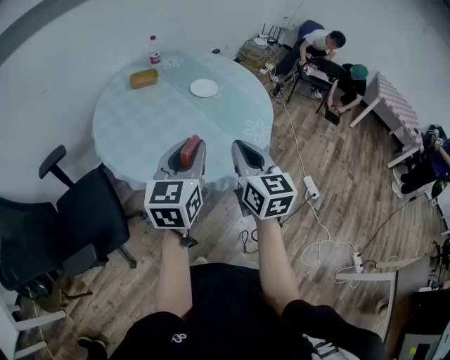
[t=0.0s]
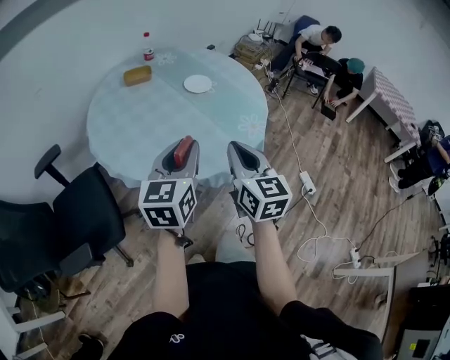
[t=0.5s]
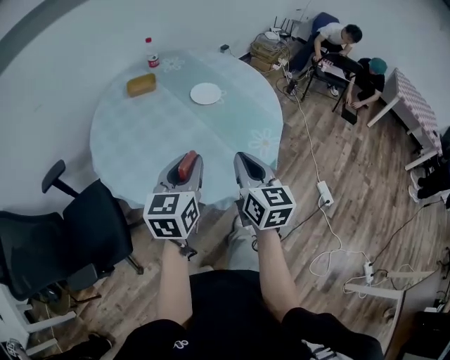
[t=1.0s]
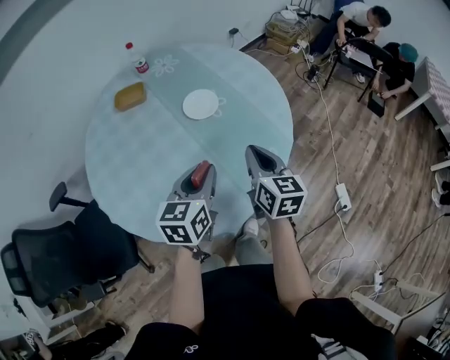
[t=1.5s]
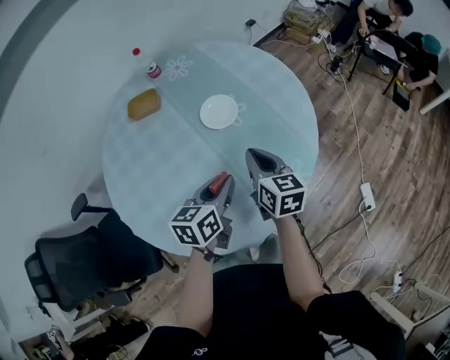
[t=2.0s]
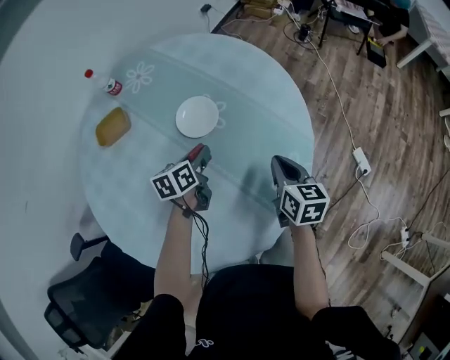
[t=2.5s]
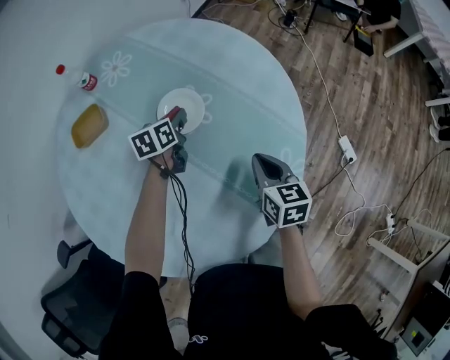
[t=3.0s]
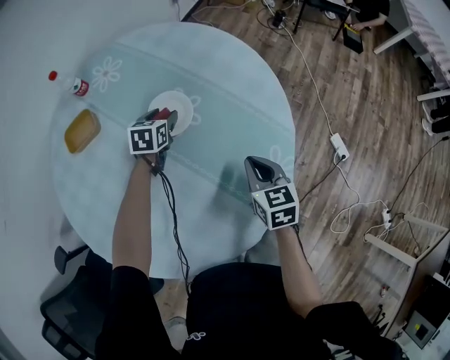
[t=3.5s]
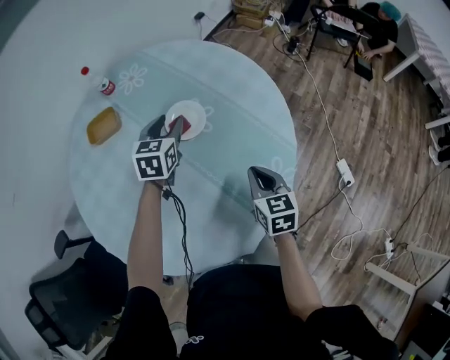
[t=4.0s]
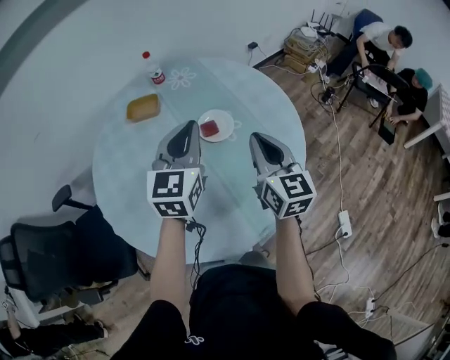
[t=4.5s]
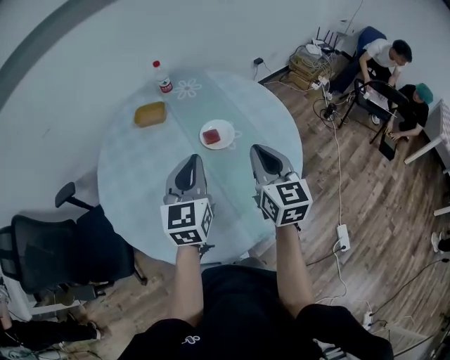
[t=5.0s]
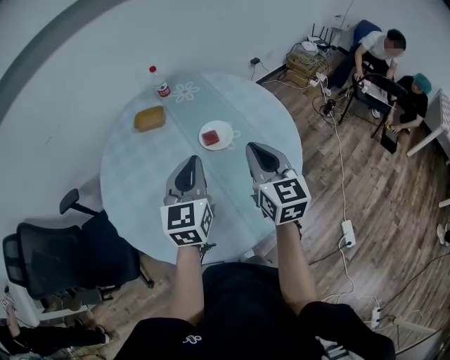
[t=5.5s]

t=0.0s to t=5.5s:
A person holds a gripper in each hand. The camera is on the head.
t=0.0s to t=2.0s: The right gripper goes about 40 cm forward and downward, and changes its angle by roughly 20 degrees; the left gripper travels forward, downward and to the right by roughly 40 cm, and rotates approximately 30 degrees.
t=2.0s to t=3.5s: The left gripper goes some 35 cm forward and downward, swivels approximately 30 degrees, and opens its fingers. Meanwhile the right gripper shifts some 10 cm downward and to the right, and changes its angle by about 30 degrees.
t=3.5s to t=5.5s: The two grippers go approximately 30 cm upward. The left gripper tips its fingers upward by roughly 40 degrees, and closes up. Meanwhile the right gripper tilts its fingers roughly 30 degrees upward.

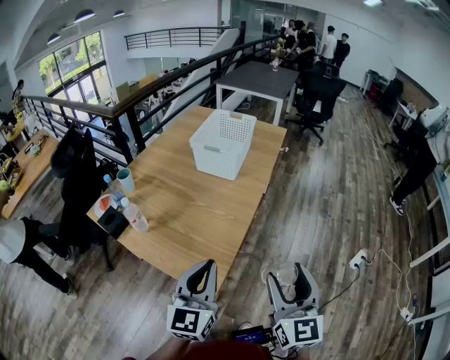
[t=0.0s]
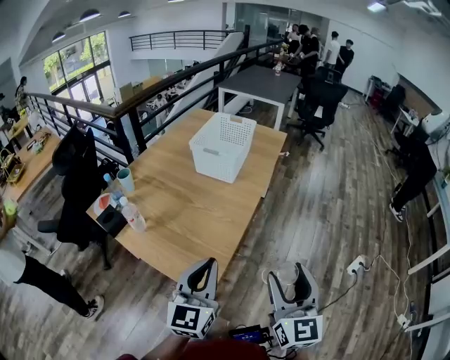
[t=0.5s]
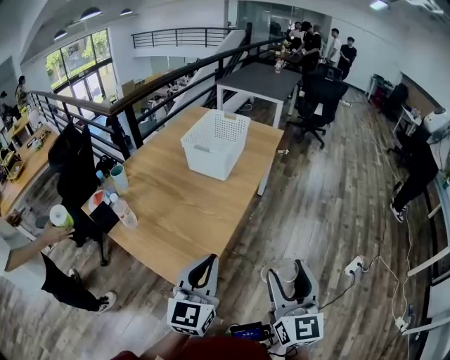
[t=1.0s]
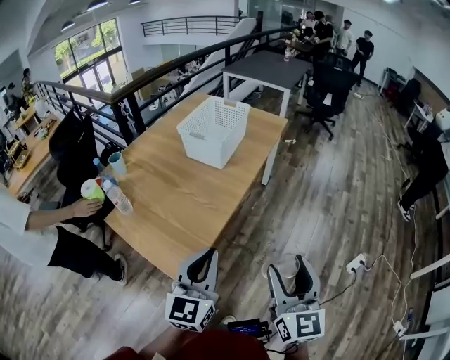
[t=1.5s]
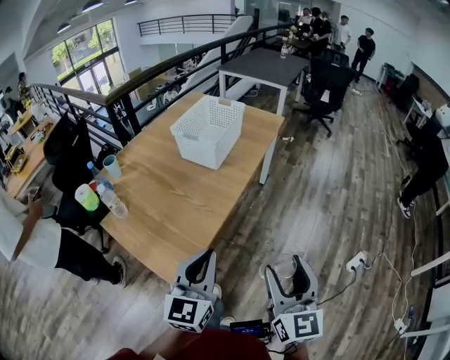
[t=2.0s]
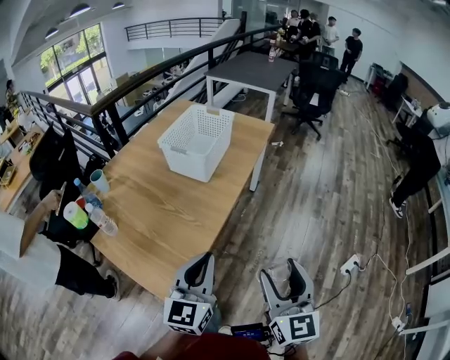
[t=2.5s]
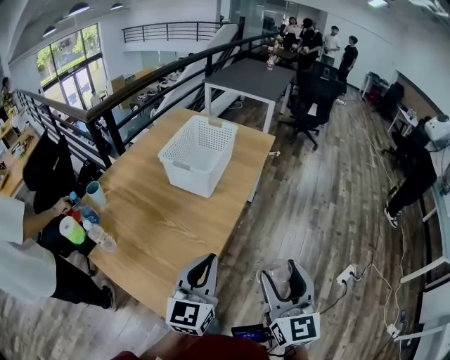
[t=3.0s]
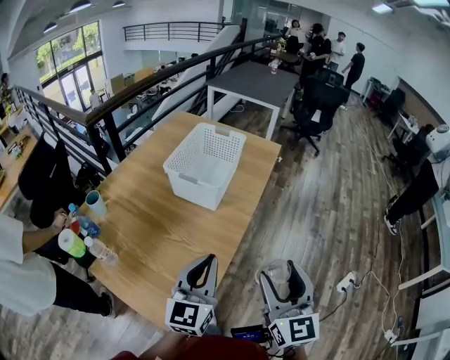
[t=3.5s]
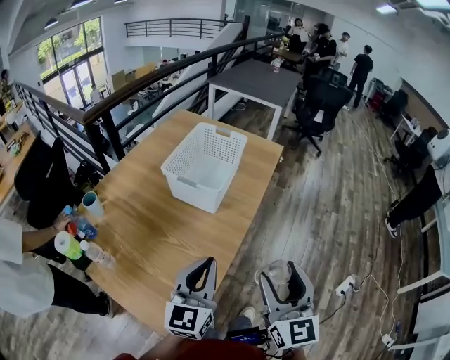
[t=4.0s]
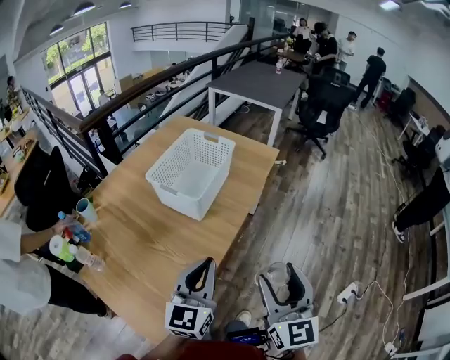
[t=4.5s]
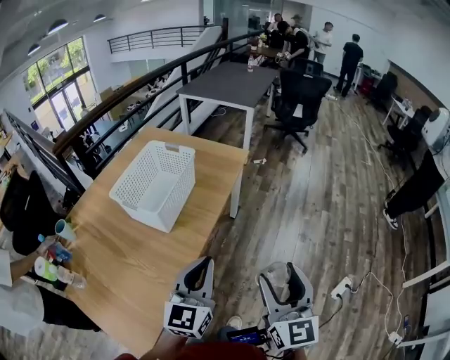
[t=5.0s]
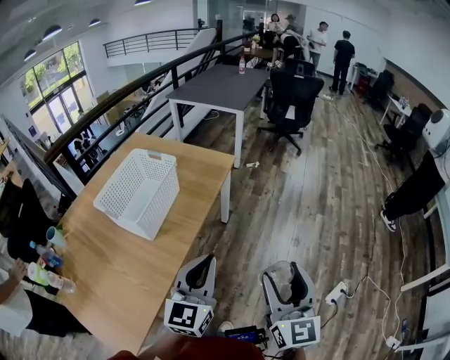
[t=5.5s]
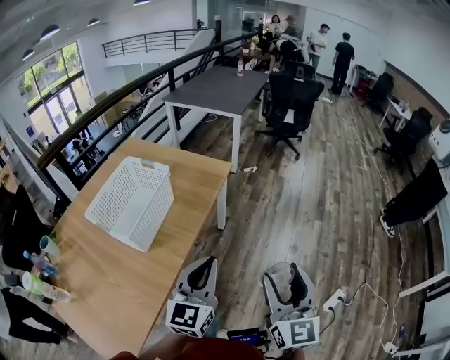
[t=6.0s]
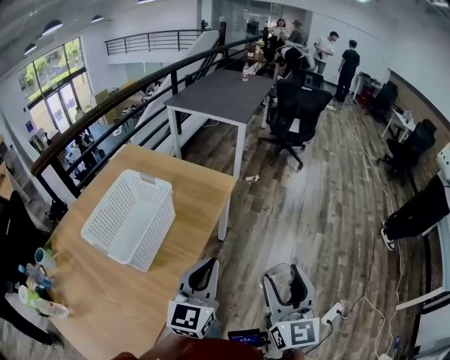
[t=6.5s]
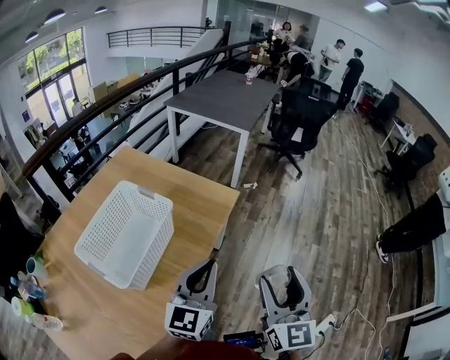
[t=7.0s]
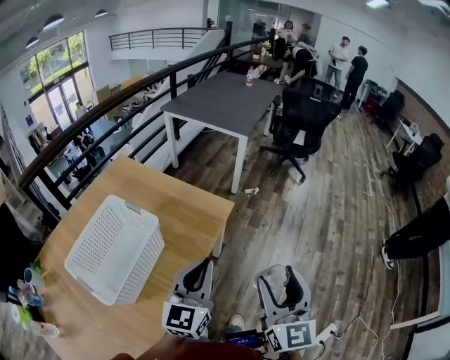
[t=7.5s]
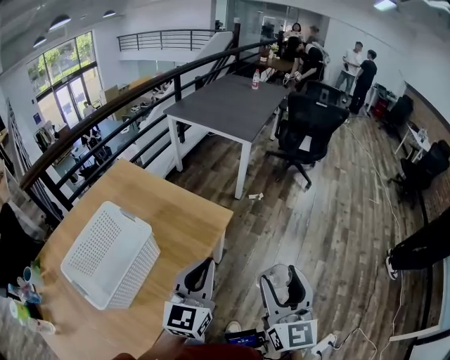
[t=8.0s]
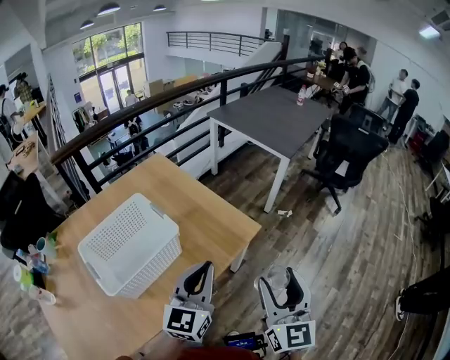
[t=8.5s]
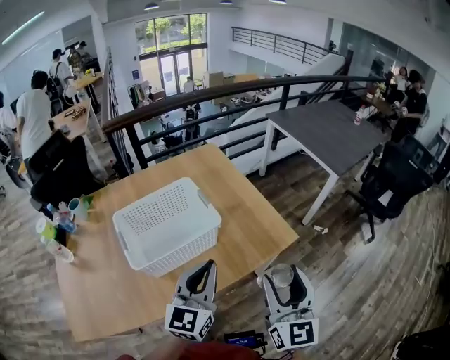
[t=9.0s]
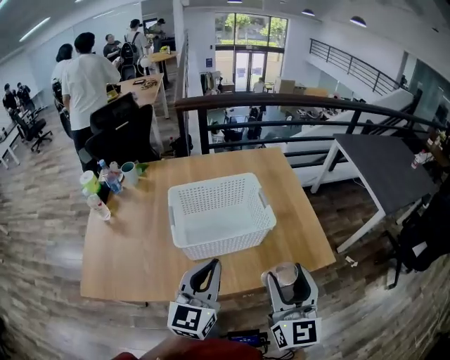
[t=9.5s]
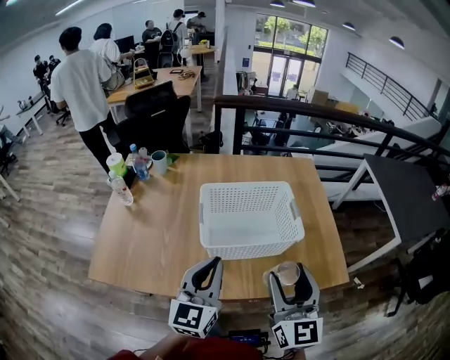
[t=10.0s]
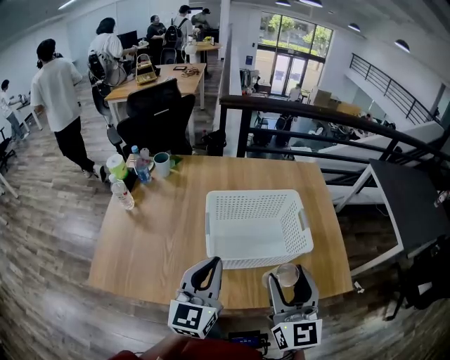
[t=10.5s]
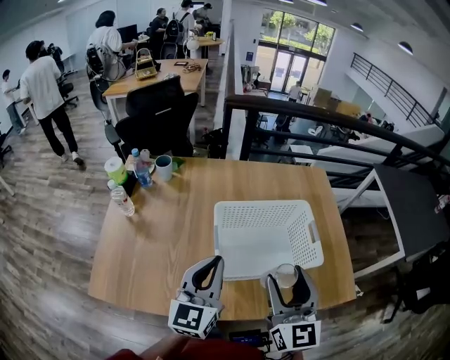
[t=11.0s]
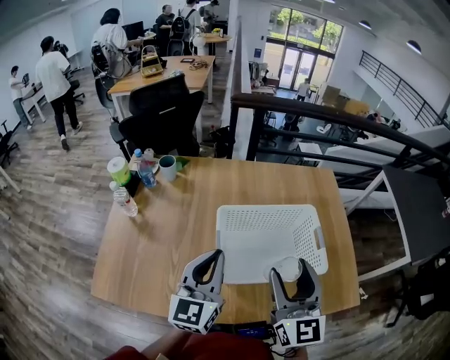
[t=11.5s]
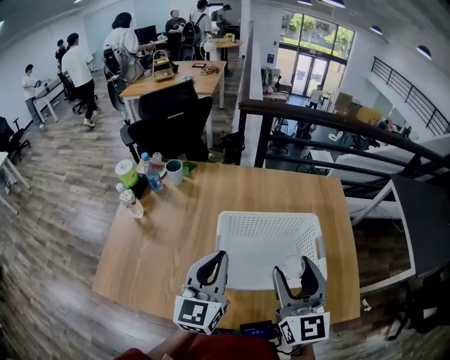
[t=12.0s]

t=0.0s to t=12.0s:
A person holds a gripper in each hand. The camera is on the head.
t=0.0s to t=2.0s: Both grippers travel together to the right, some 10 cm.
t=2.0s to t=4.0s: The left gripper is displaced forward by some 20 cm. Meanwhile the right gripper moves forward and to the left, about 20 cm.
t=4.0s to t=6.0s: Both grippers move to the right and forward, about 30 cm.
t=6.0s to t=8.0s: The grippers both shift forward by some 30 cm.
t=8.0s to t=10.0s: The right gripper changes place by roughly 30 cm, and turns by about 60 degrees; the left gripper shifts by roughly 30 cm, and changes its angle by approximately 60 degrees.
t=10.0s to t=12.0s: Both grippers move forward, about 15 cm.

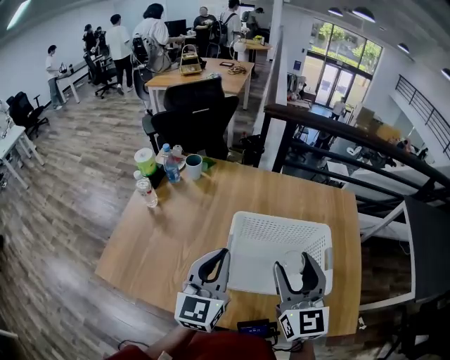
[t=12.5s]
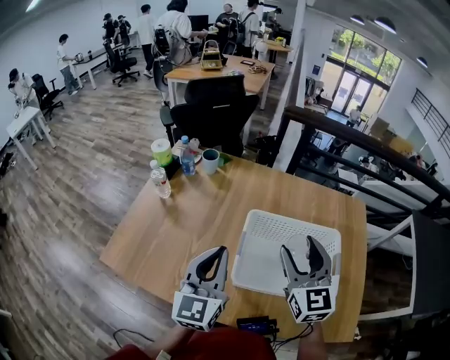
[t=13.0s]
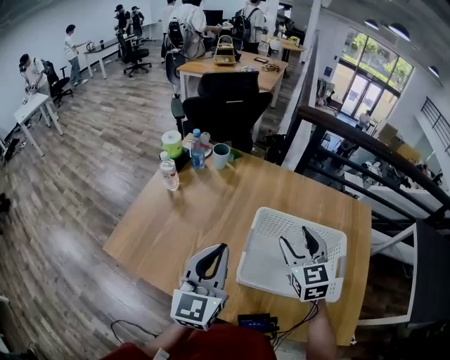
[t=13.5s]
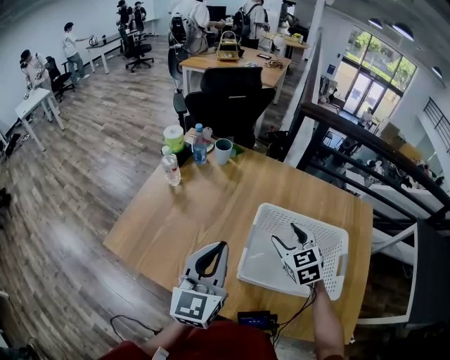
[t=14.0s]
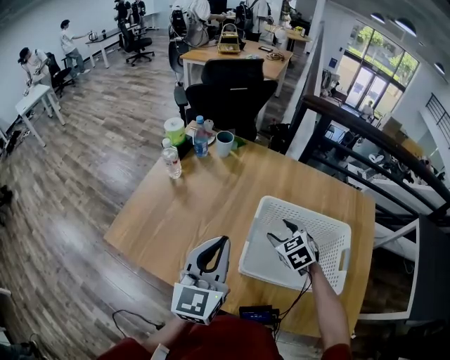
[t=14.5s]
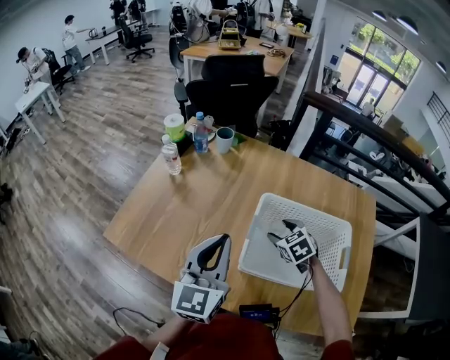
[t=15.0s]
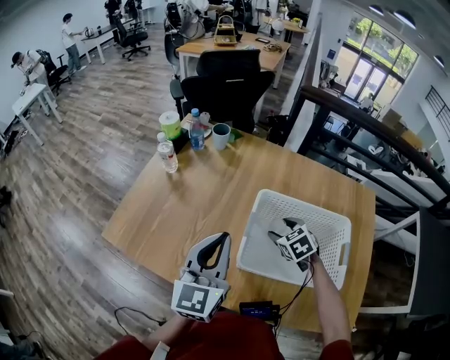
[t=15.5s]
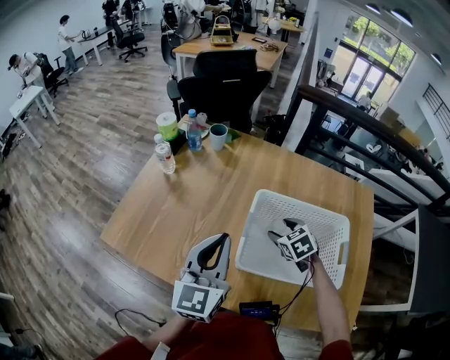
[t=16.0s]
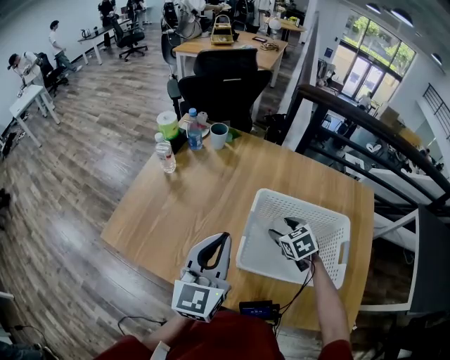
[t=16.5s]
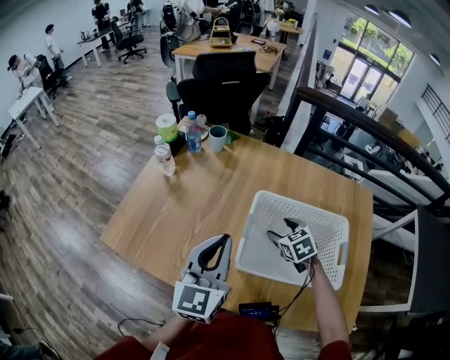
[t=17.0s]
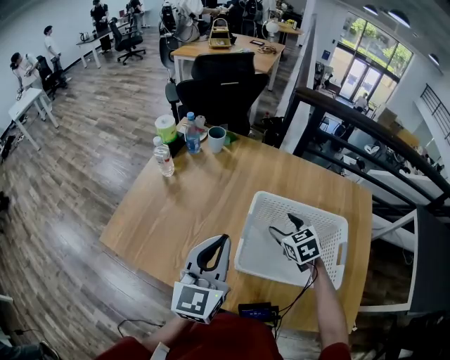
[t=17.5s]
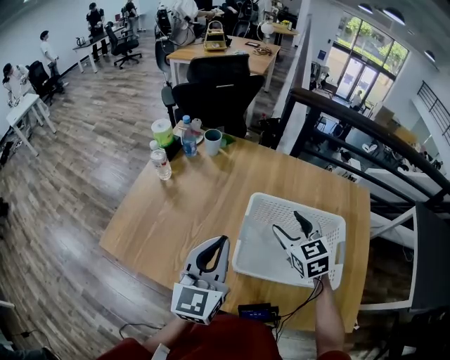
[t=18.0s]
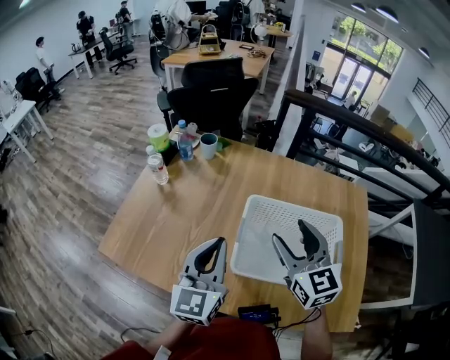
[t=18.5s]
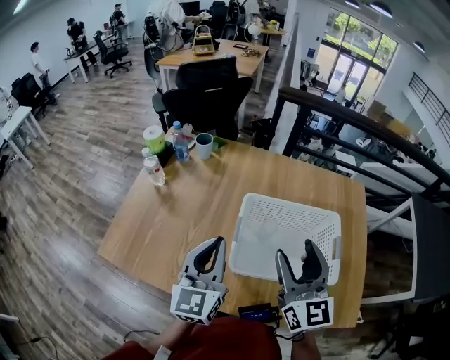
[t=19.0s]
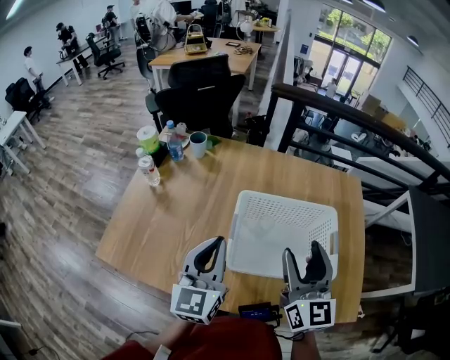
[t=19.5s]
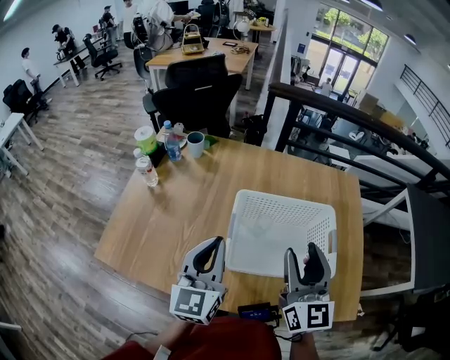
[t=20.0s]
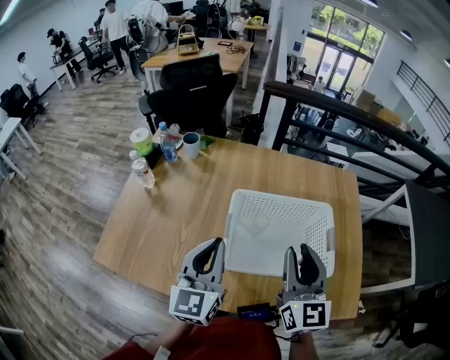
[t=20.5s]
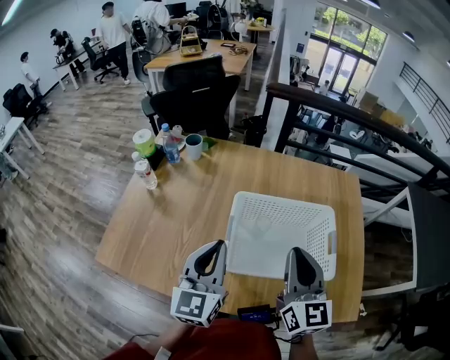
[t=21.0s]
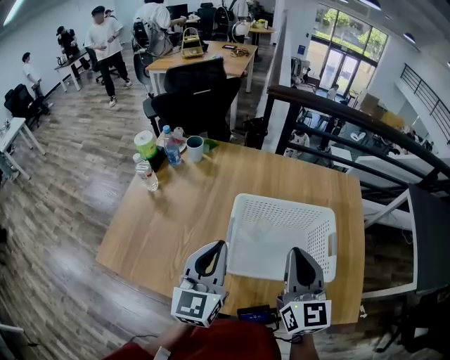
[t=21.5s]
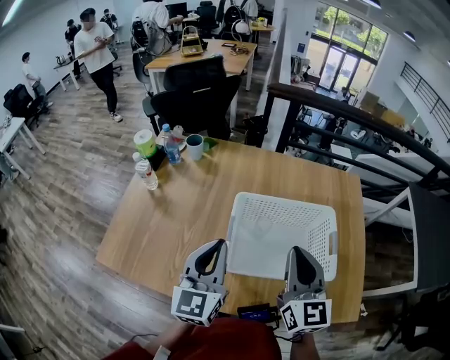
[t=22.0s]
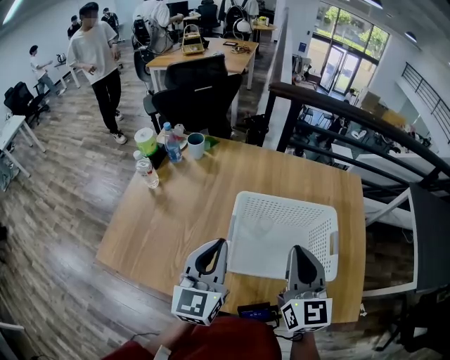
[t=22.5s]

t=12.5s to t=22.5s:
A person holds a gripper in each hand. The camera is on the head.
t=12.5s to t=14.5s: The left gripper travels to the left by some 5 cm. The right gripper goes approximately 25 cm downward and forward, and tilts its fingers approximately 40 degrees downward.
t=14.5s to t=16.5s: The grippers make only small movements.
t=16.5s to t=18.5s: The right gripper goes some 20 cm upward, and angles its fingers upward, by about 40 degrees.
t=18.5s to t=20.5s: The right gripper goes some 10 cm backward and to the right, changes its angle by roughly 20 degrees, and closes its fingers.
t=20.5s to t=22.5s: The right gripper closes its fingers.
